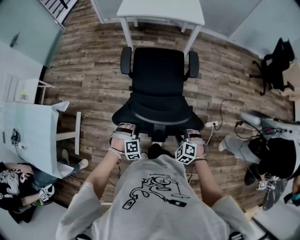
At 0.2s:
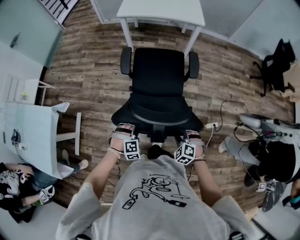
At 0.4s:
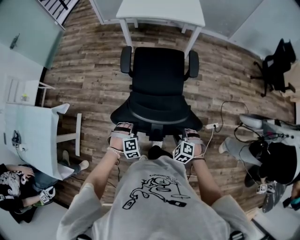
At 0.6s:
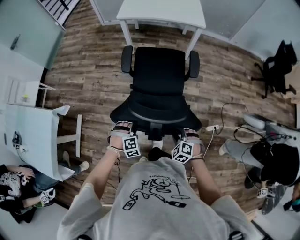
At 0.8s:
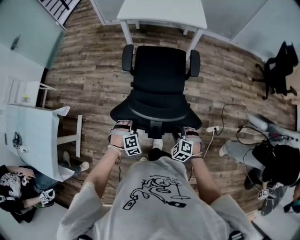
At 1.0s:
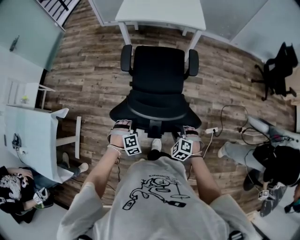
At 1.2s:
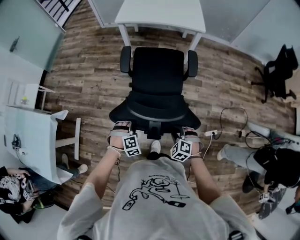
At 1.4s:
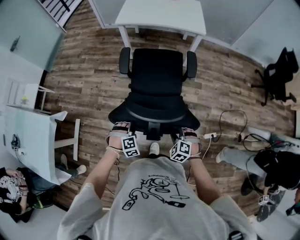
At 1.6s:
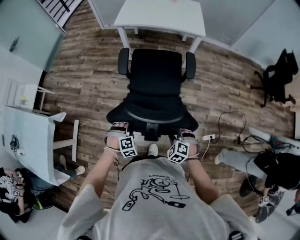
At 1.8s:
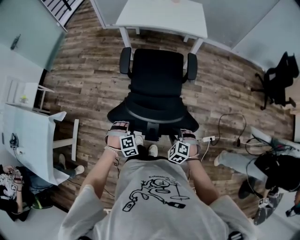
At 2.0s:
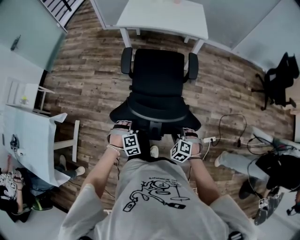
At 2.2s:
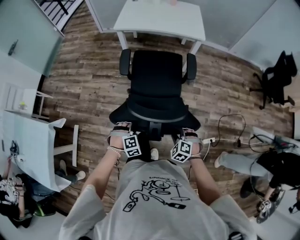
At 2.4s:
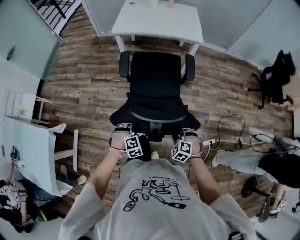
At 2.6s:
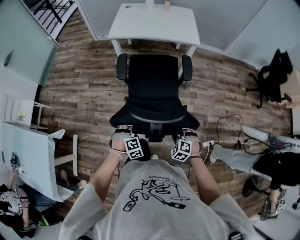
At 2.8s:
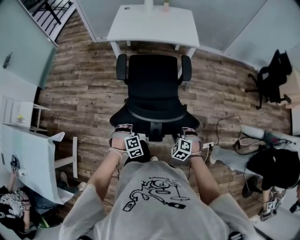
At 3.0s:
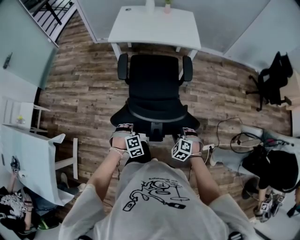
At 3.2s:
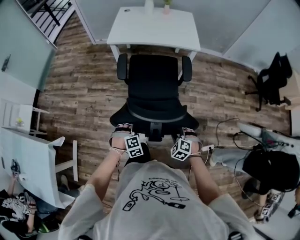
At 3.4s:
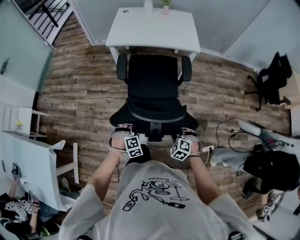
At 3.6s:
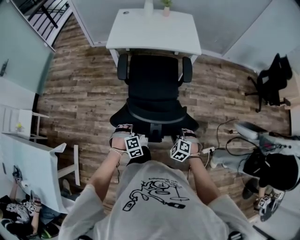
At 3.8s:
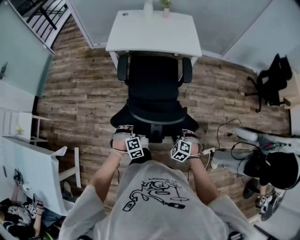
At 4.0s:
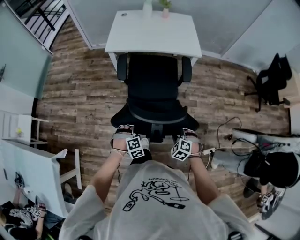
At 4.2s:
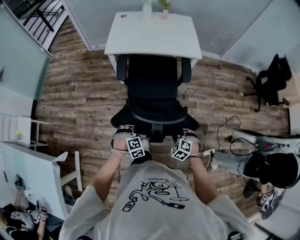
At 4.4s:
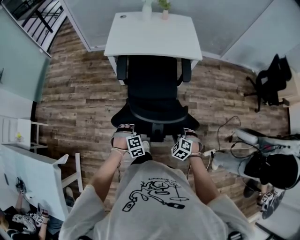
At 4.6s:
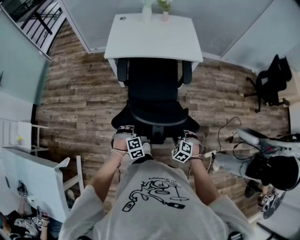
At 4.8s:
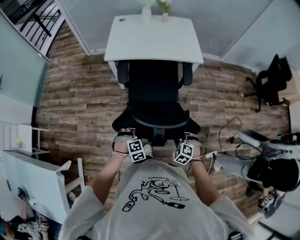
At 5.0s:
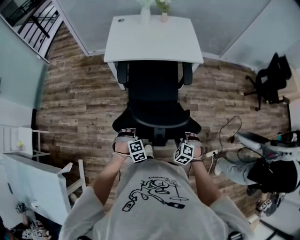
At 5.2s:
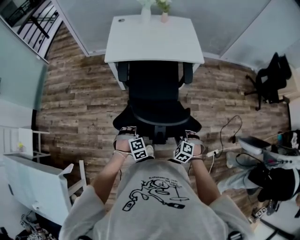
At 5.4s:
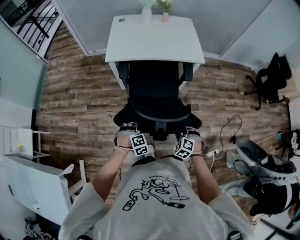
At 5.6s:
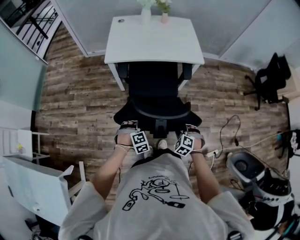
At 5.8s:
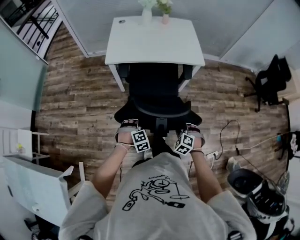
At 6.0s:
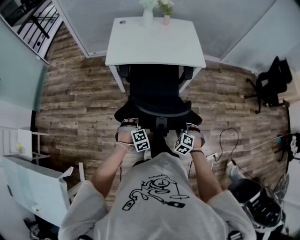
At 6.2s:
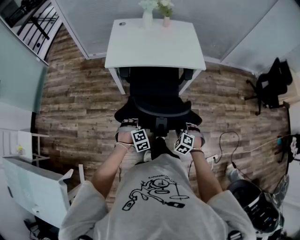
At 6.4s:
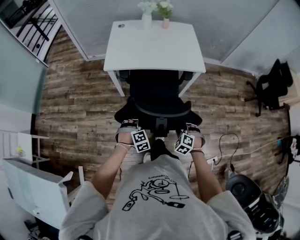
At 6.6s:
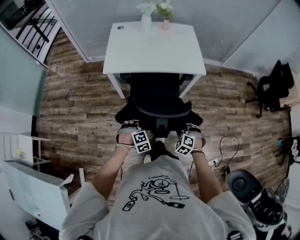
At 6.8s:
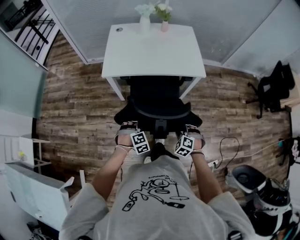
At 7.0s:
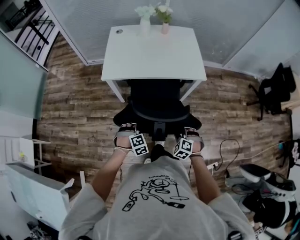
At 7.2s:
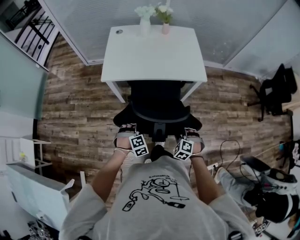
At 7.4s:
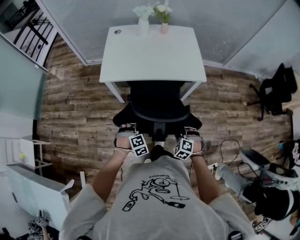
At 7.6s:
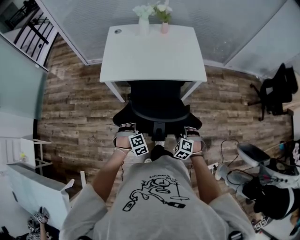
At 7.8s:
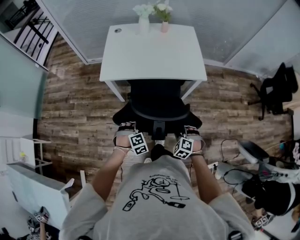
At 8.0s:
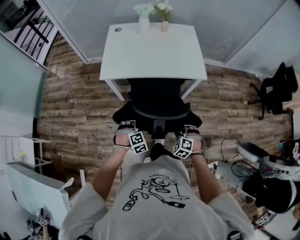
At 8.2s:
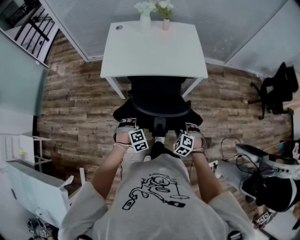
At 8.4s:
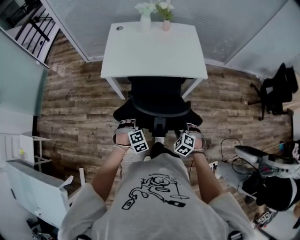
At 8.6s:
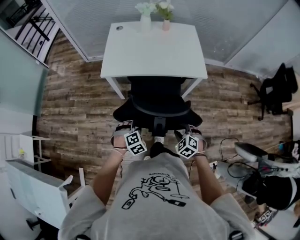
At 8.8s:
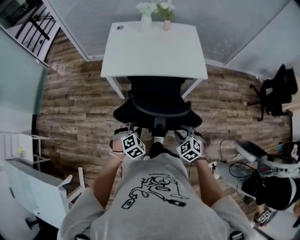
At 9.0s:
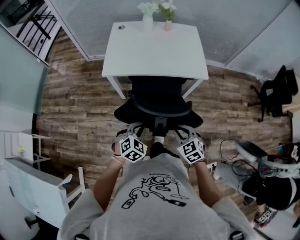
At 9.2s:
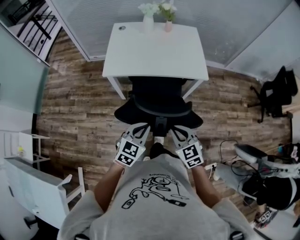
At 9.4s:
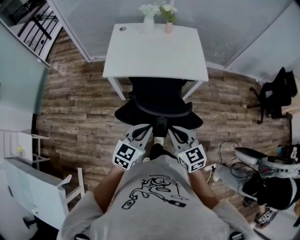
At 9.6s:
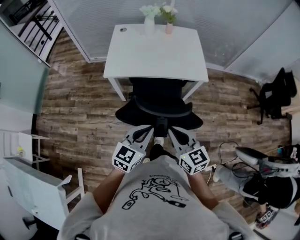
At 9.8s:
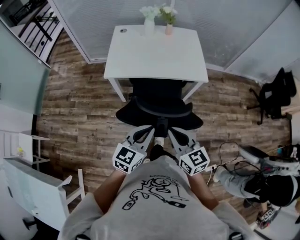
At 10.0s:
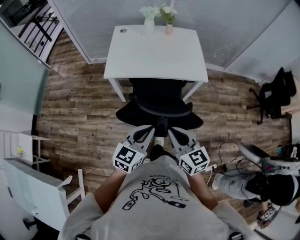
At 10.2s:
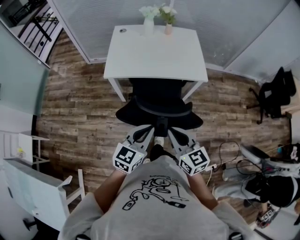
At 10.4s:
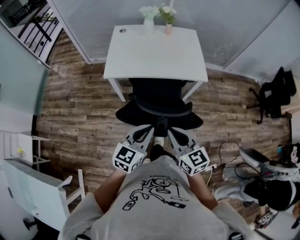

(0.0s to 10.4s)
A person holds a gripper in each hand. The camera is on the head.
0.0s - 1.4s: The two grippers go some 10 cm forward.
1.4s - 3.0s: The two grippers go some 10 cm forward.
3.0s - 4.4s: The two grippers go some 15 cm forward.
4.4s - 6.0s: The two grippers go roughly 10 cm forward.
6.0s - 7.4s: Both grippers move forward, about 10 cm.
7.4s - 9.0s: Both grippers move upward, some 10 cm. The left gripper turns by about 40 degrees, and closes its fingers. The right gripper swivels about 40 degrees.
9.0s - 10.4s: The left gripper is displaced upward by roughly 15 cm, and tilts its fingers some 30 degrees upward. The right gripper goes roughly 15 cm upward and to the left, and swivels approximately 30 degrees.

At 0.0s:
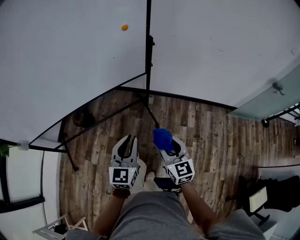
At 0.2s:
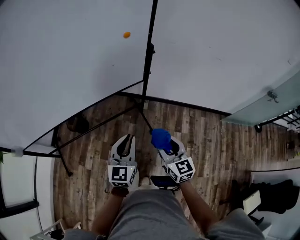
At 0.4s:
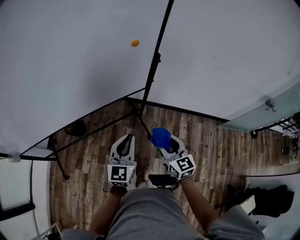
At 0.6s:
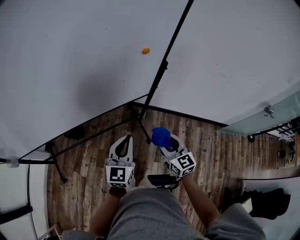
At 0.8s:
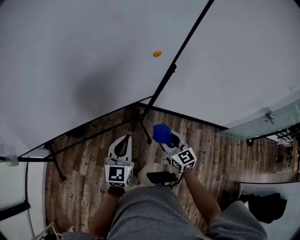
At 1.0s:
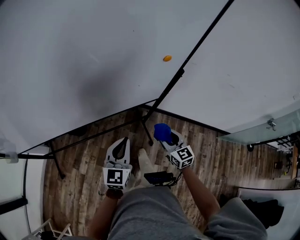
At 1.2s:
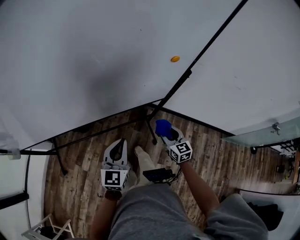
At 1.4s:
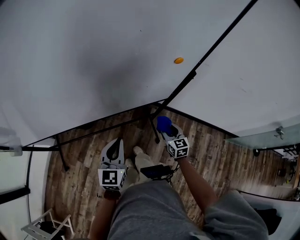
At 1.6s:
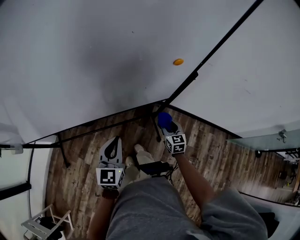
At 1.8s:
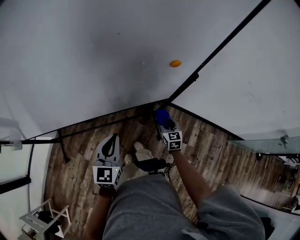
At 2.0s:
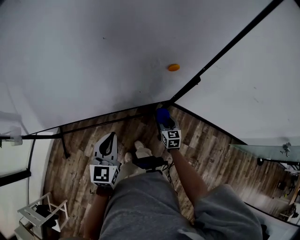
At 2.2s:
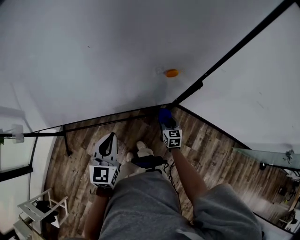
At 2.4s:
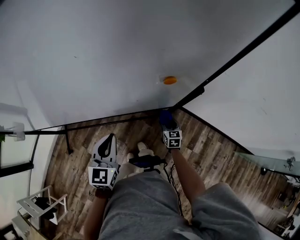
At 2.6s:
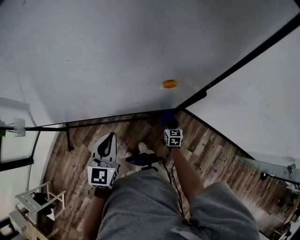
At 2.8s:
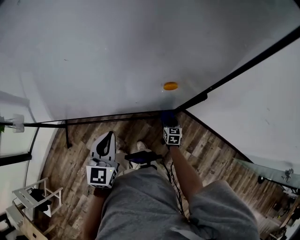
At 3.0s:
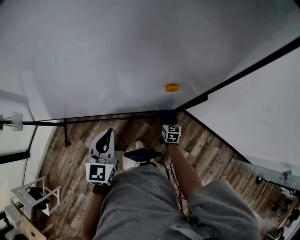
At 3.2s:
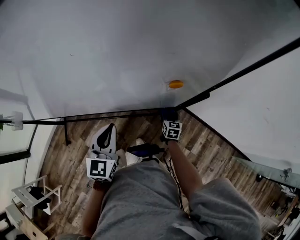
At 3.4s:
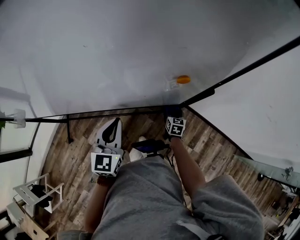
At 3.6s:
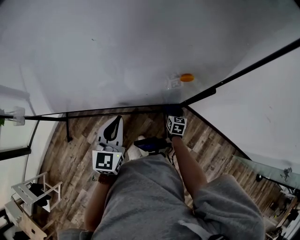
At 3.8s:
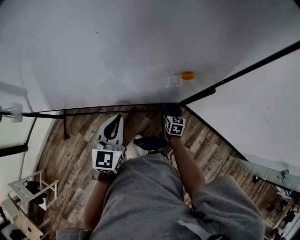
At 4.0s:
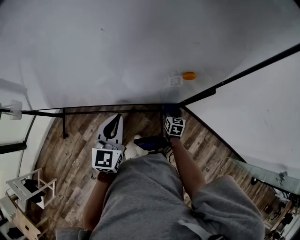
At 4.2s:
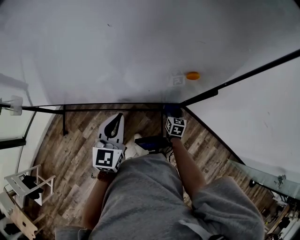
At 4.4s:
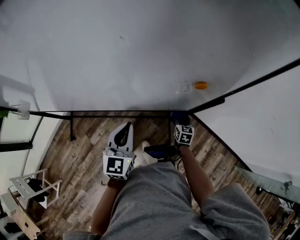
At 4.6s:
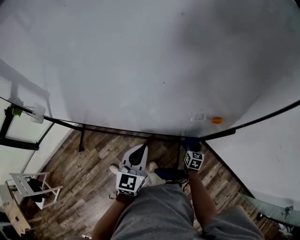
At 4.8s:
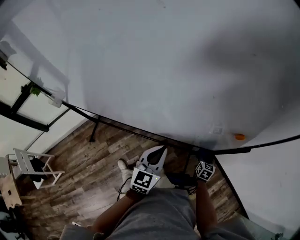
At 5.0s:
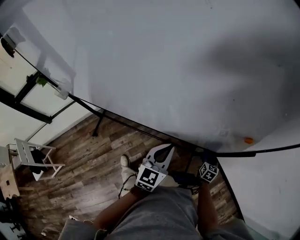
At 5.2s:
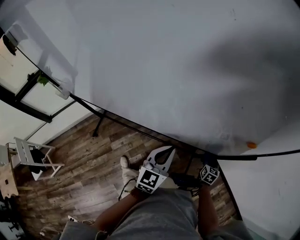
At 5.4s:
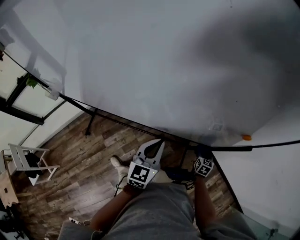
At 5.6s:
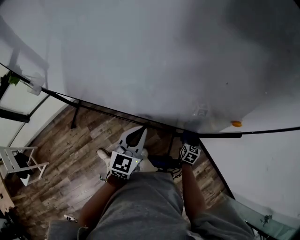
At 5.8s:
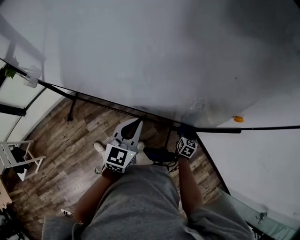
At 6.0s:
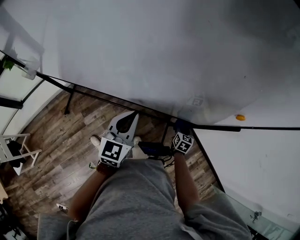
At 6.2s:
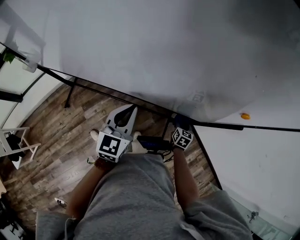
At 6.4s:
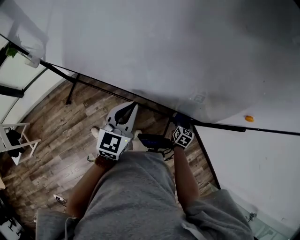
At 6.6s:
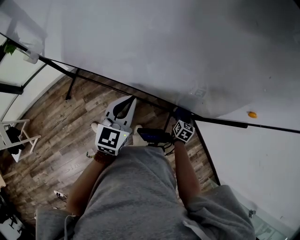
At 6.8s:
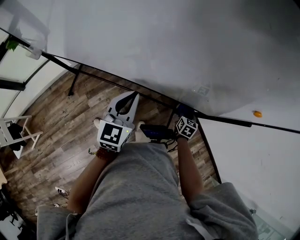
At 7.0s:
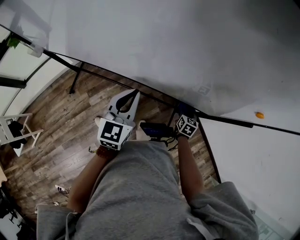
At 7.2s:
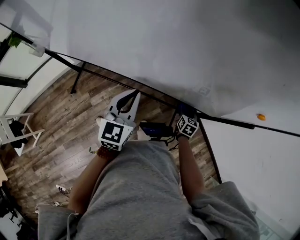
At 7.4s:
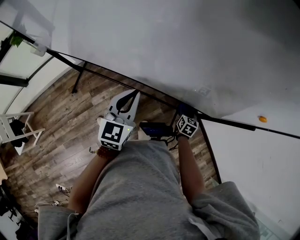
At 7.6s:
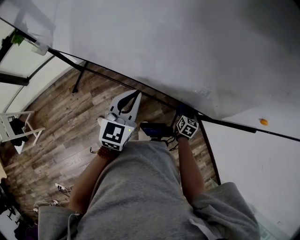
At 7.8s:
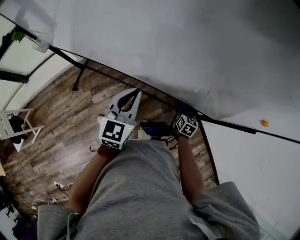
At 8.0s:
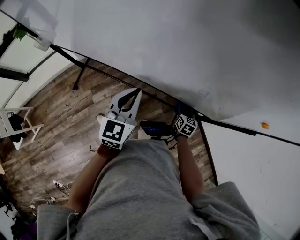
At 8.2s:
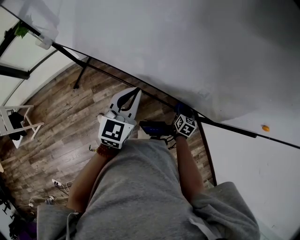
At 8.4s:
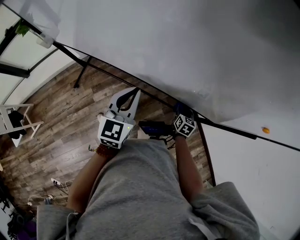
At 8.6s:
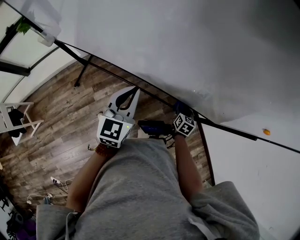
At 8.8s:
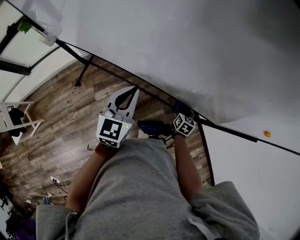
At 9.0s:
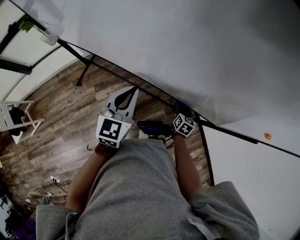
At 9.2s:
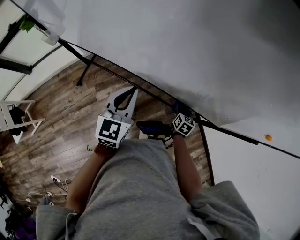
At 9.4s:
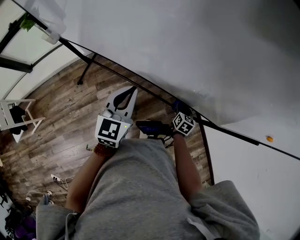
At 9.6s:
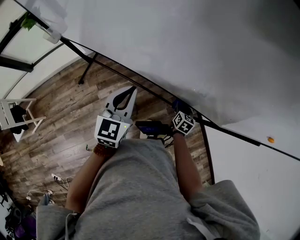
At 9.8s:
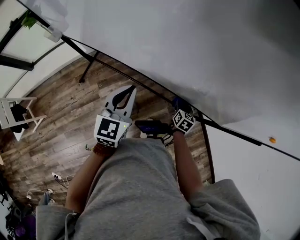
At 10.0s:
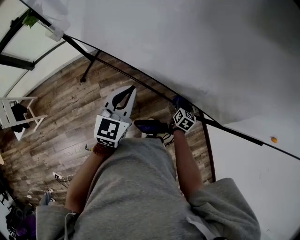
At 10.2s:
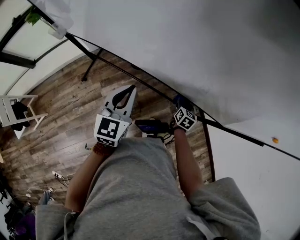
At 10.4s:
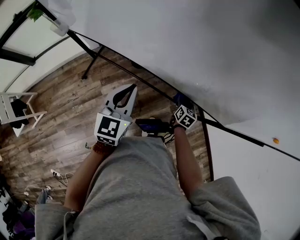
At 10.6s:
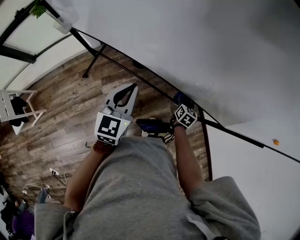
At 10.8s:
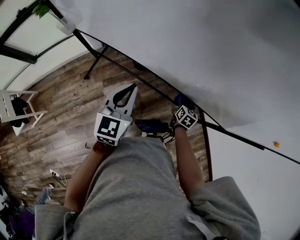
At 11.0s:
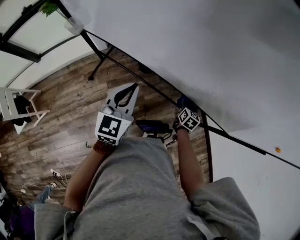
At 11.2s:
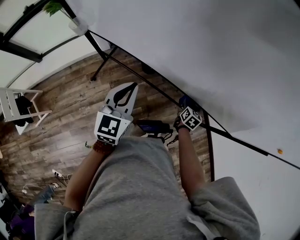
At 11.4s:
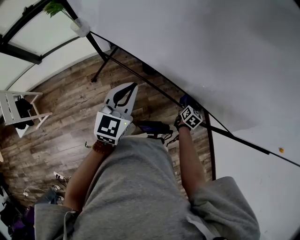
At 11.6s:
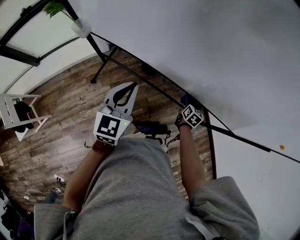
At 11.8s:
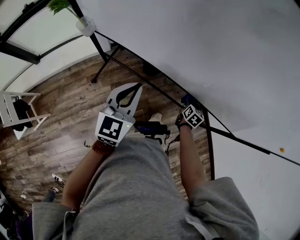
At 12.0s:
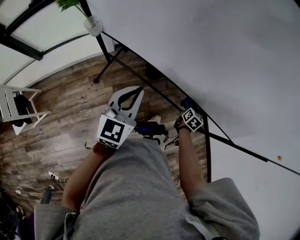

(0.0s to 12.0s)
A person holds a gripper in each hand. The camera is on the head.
0.0s - 1.6s: The left gripper goes some 25 cm forward and to the left, while the right gripper travels forward and downward by about 40 cm.
1.6s - 3.0s: The right gripper goes approximately 20 cm downward and forward. The left gripper is displaced forward by approximately 10 cm.
3.0s - 4.4s: The grippers move only a little.
4.4s - 6.0s: The left gripper heads to the left, covering roughly 10 cm.
6.0s - 7.6s: The two grippers go roughly 10 cm to the left.
7.6s - 9.0s: Both grippers travel together to the left, approximately 5 cm.
9.0s - 10.4s: Both grippers travel together to the left, some 5 cm.
10.4s - 12.0s: The two grippers go about 15 cm to the left.

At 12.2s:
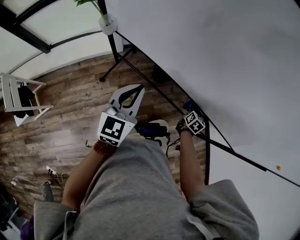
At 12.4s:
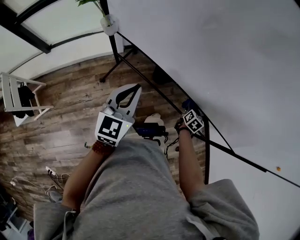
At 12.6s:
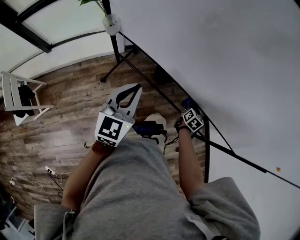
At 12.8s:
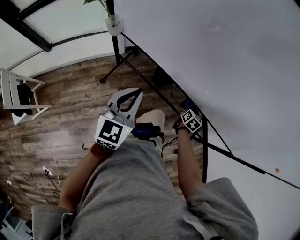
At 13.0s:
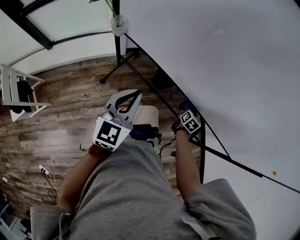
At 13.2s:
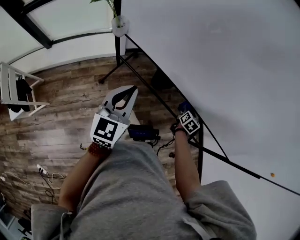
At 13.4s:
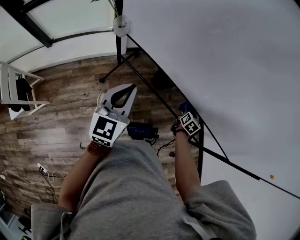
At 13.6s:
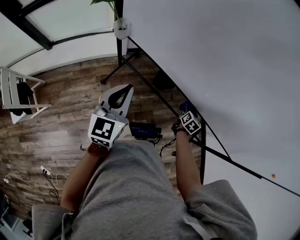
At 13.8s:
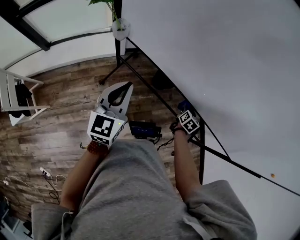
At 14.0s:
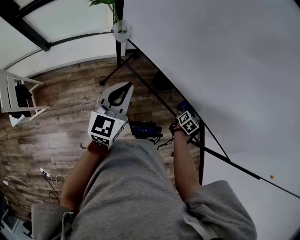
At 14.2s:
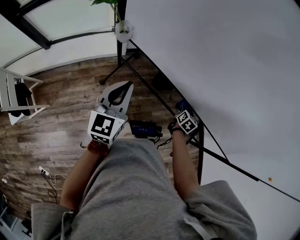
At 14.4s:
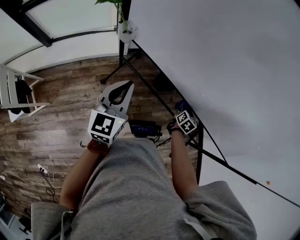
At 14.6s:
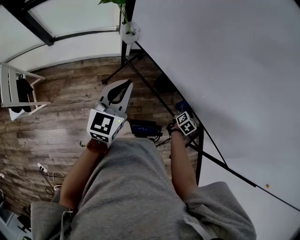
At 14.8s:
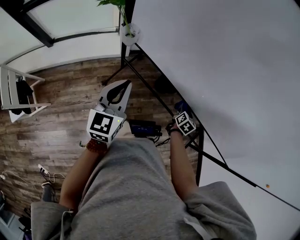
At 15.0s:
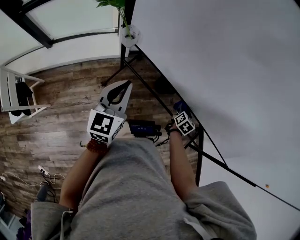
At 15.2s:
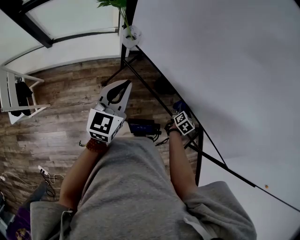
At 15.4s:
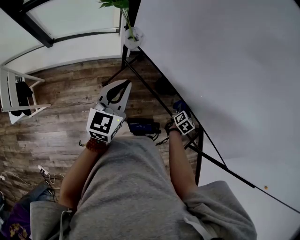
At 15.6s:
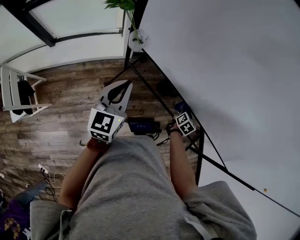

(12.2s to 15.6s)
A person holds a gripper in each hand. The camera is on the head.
12.2s - 13.8s: Both grippers travel together to the left, some 10 cm.
13.8s - 15.6s: Both grippers travel together to the left, roughly 10 cm.
